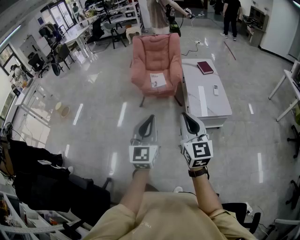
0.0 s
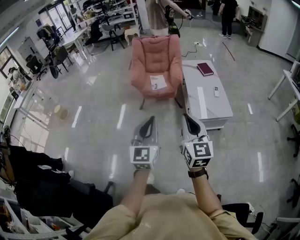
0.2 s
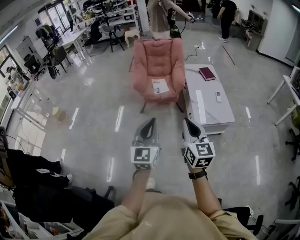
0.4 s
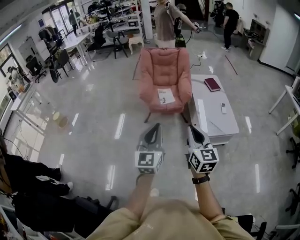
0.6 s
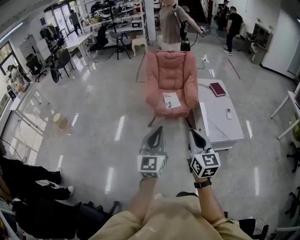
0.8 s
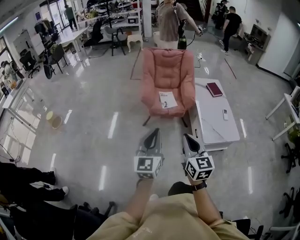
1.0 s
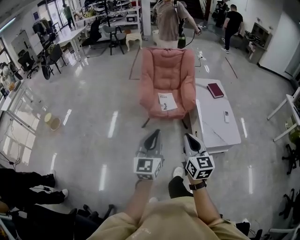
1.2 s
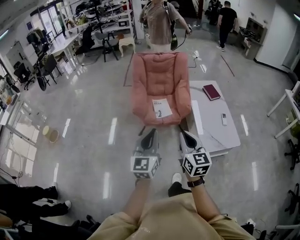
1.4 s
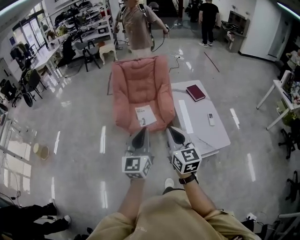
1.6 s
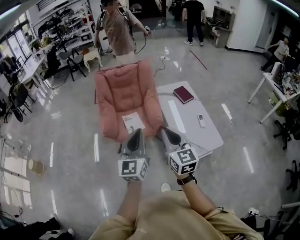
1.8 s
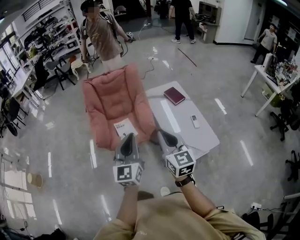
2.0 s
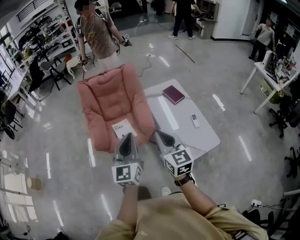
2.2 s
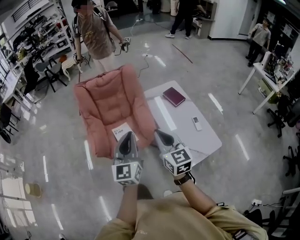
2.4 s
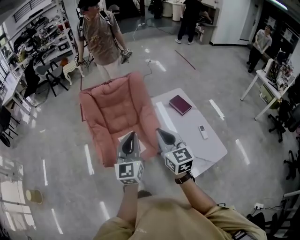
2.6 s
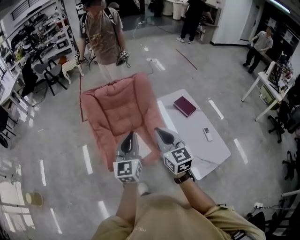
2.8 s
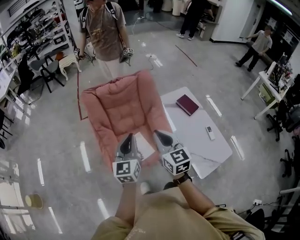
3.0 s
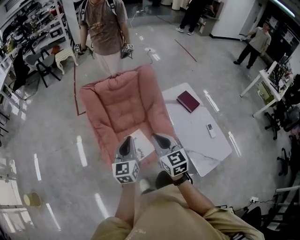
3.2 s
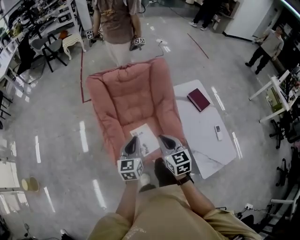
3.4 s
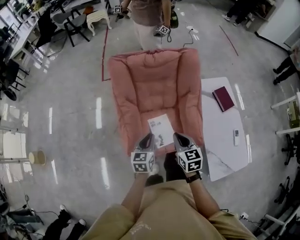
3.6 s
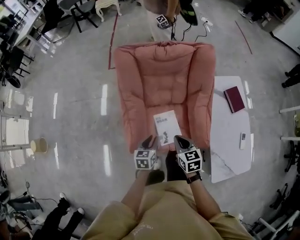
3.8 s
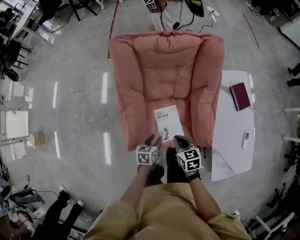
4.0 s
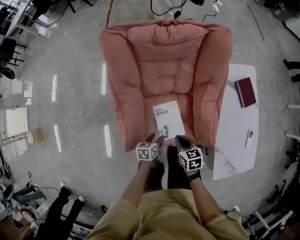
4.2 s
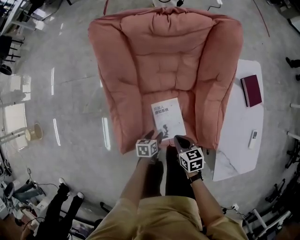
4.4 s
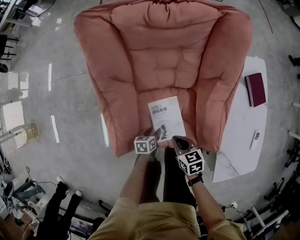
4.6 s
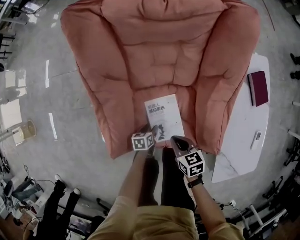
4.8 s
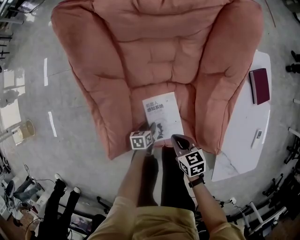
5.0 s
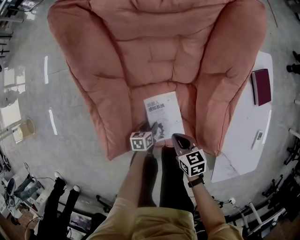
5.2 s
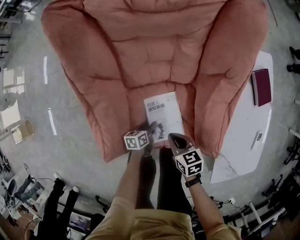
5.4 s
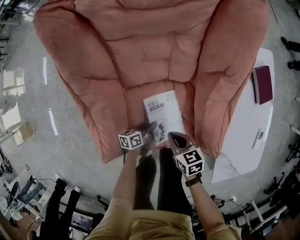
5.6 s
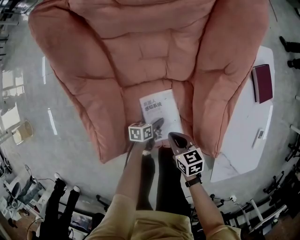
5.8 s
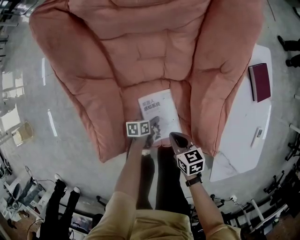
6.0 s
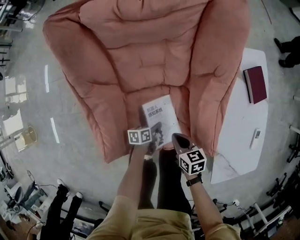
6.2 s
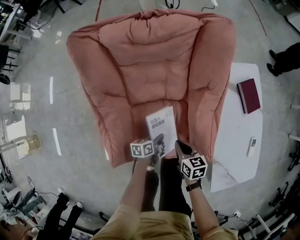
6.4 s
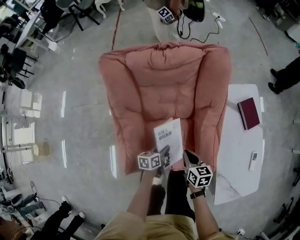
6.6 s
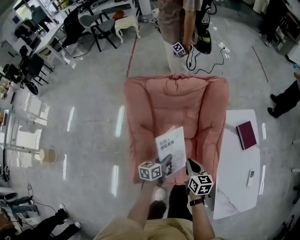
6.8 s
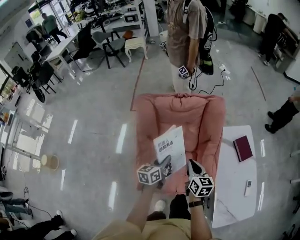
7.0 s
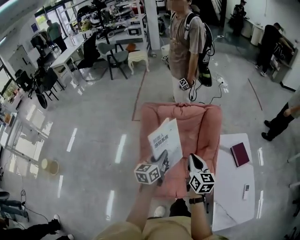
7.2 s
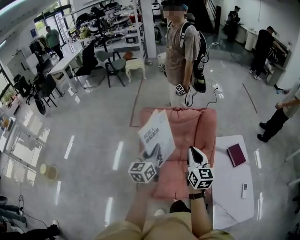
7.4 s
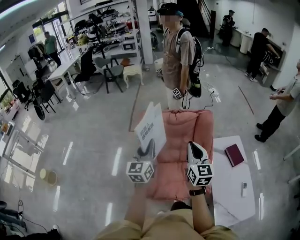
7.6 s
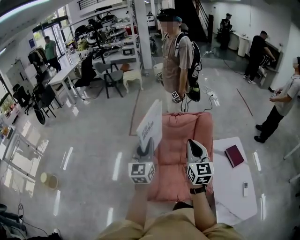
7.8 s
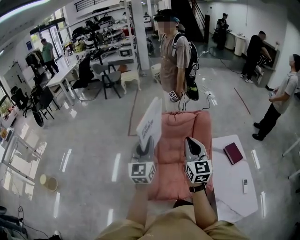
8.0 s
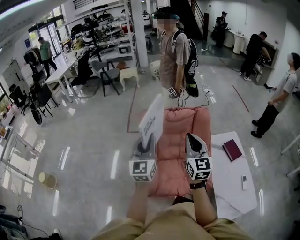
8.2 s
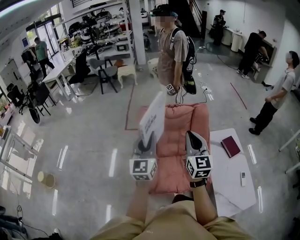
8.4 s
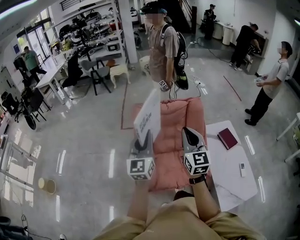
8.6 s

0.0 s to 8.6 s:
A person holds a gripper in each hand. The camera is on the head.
0.0 to 1.4 s: The grippers both shift forward and to the left by roughly 40 cm.
1.4 to 2.8 s: The two grippers travel together, forward, about 50 cm.
2.8 to 4.4 s: Both grippers move downward, about 50 cm. The left gripper tips its fingers downward by some 50 degrees, and opens. The right gripper points its fingers approximately 40 degrees further downward.
4.4 to 5.8 s: The grippers both shift downward by about 10 cm. The left gripper closes, then opens again.
5.8 to 7.2 s: The two grippers go some 50 cm upward. The left gripper tilts its fingers roughly 30 degrees upward, and closes, while the right gripper angles its fingers upward, by roughly 30 degrees.
7.2 to 8.6 s: The two grippers go approximately 20 cm upward and backward. The right gripper turns by approximately 30 degrees; the left gripper rotates approximately 40 degrees.

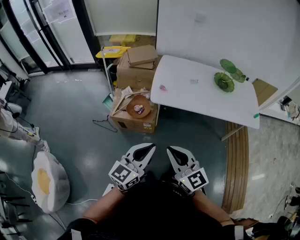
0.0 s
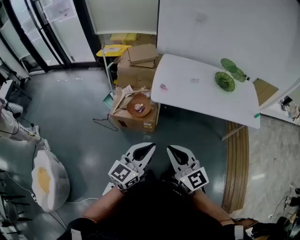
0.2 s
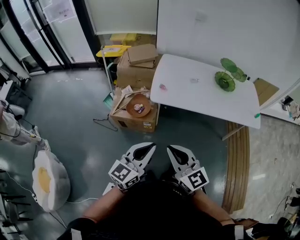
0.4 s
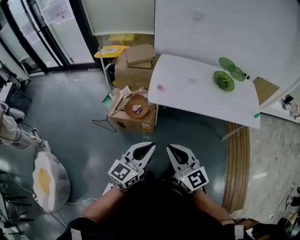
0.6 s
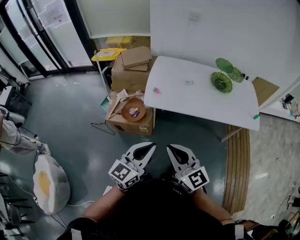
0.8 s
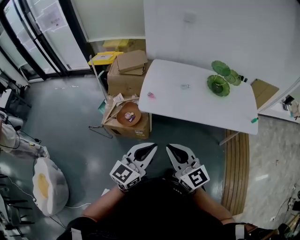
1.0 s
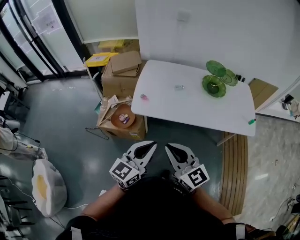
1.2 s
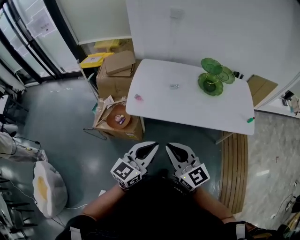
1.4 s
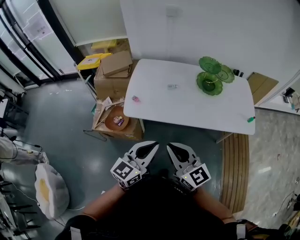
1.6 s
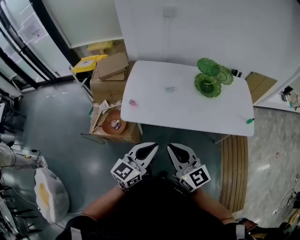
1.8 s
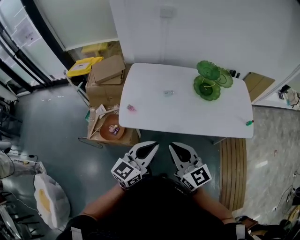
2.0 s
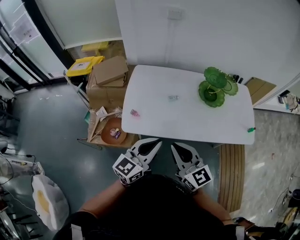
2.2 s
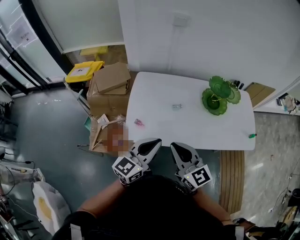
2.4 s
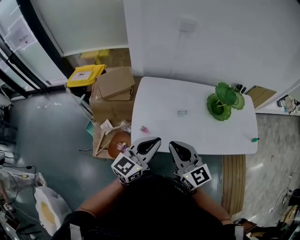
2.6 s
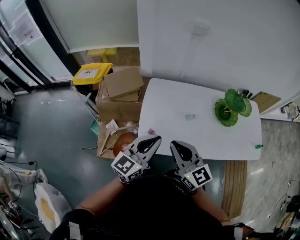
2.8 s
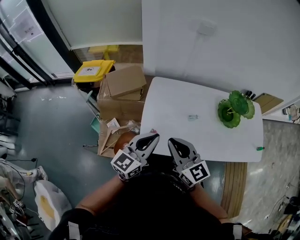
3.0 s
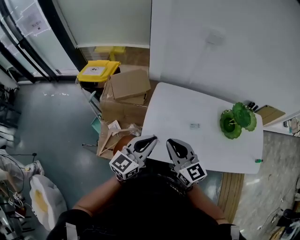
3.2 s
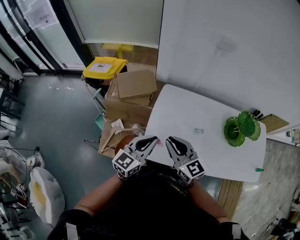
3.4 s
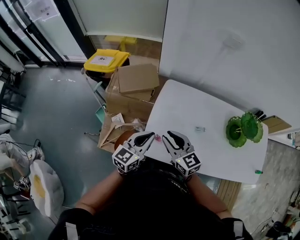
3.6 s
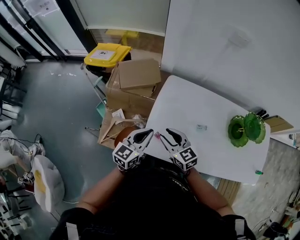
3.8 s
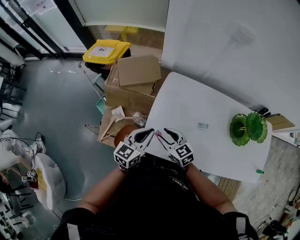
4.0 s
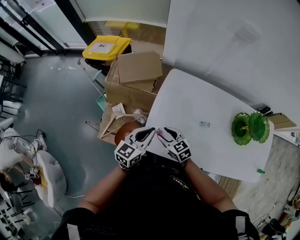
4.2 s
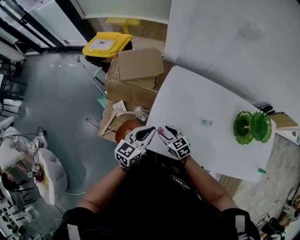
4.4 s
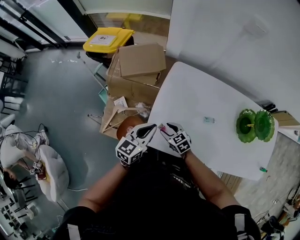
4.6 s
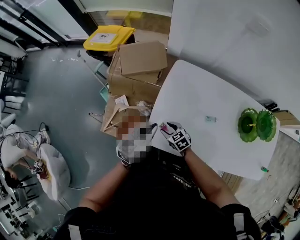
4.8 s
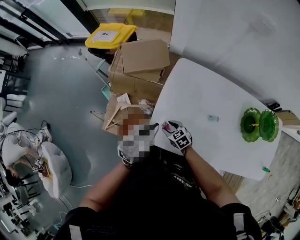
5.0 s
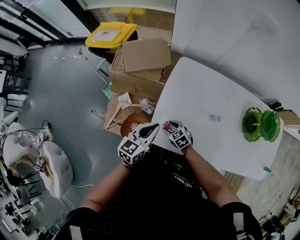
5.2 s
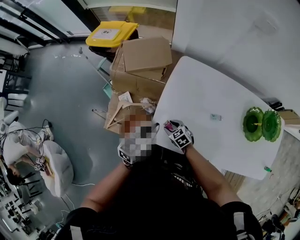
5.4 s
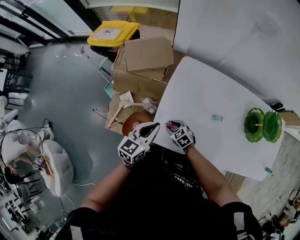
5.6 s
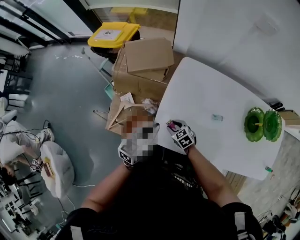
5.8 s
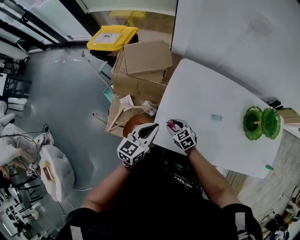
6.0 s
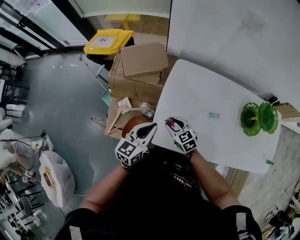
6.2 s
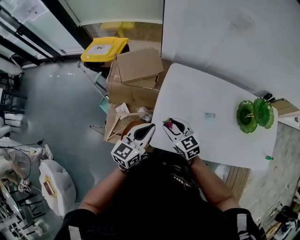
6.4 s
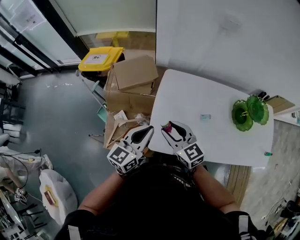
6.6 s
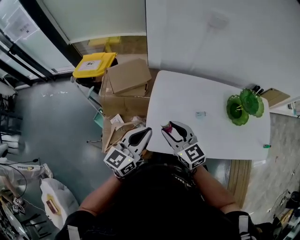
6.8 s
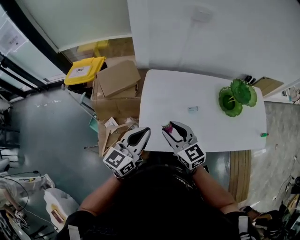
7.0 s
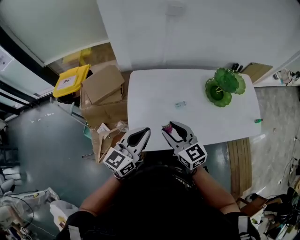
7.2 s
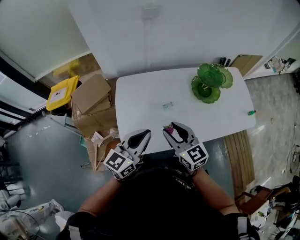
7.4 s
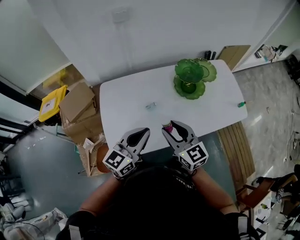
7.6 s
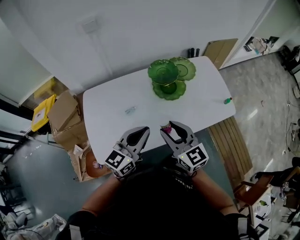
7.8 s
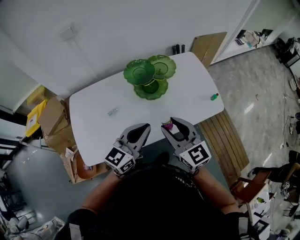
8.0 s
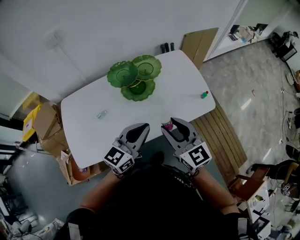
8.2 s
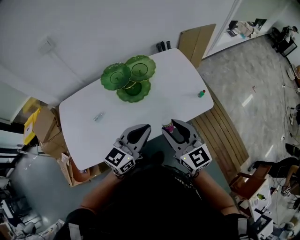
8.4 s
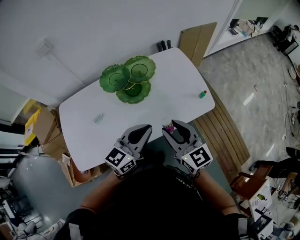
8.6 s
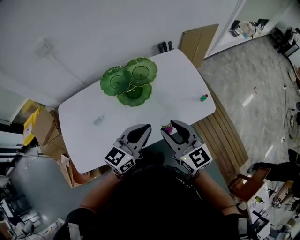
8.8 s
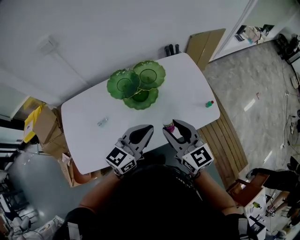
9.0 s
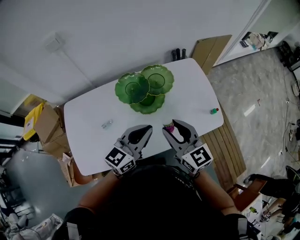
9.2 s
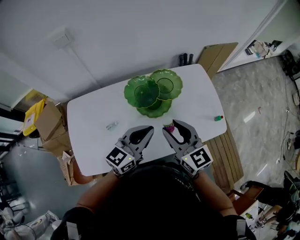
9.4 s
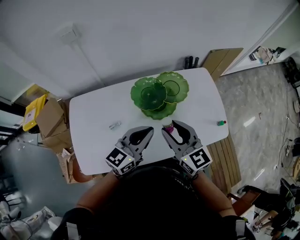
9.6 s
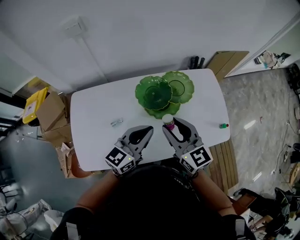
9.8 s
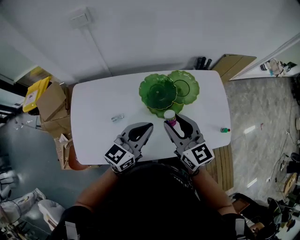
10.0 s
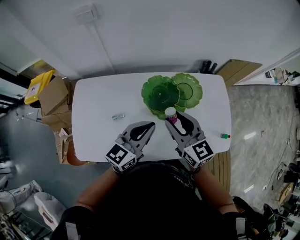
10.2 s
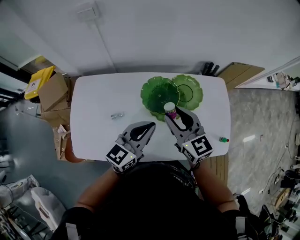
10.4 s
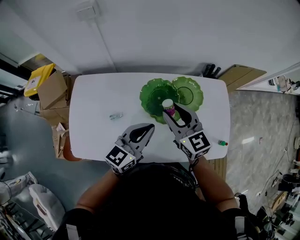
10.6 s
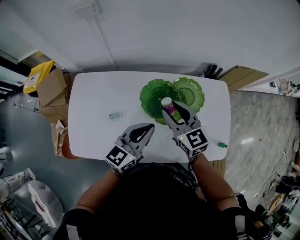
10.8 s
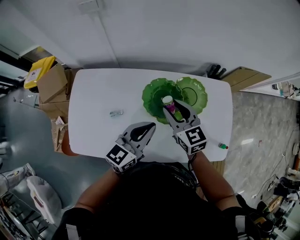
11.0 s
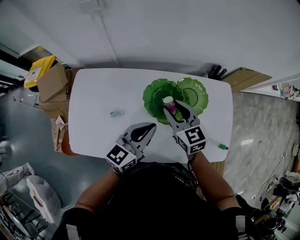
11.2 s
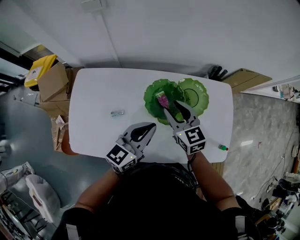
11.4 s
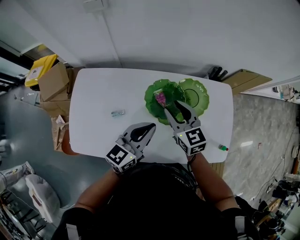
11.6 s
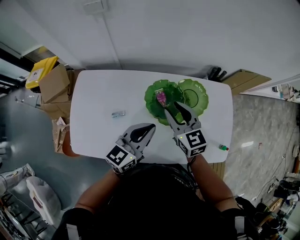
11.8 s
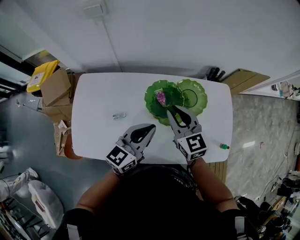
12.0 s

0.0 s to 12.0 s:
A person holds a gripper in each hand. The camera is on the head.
0.0 to 1.6 s: The grippers both shift to the right and forward by about 25 cm.
1.6 to 3.0 s: The two grippers go roughly 35 cm forward and to the left.
3.0 to 4.4 s: The right gripper goes about 30 cm downward, tips its fingers downward by approximately 30 degrees, and opens; the left gripper shifts approximately 20 cm downward and forward, and changes its angle by roughly 20 degrees.
4.4 to 6.0 s: The right gripper is displaced downward by approximately 5 cm.
6.0 to 7.6 s: The left gripper ends up about 30 cm from where it was, and changes its angle by roughly 40 degrees. Meanwhile the right gripper goes approximately 30 cm upward, and points its fingers roughly 40 degrees further upward.
7.6 to 9.0 s: The right gripper heads to the right, covering about 30 cm, while the left gripper moves to the right and forward, roughly 35 cm.
9.0 to 10.4 s: The left gripper shifts approximately 15 cm to the left and forward; the right gripper shifts about 20 cm forward and to the left.

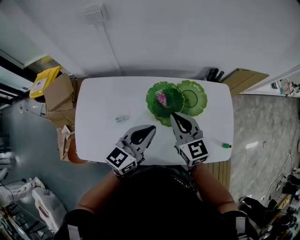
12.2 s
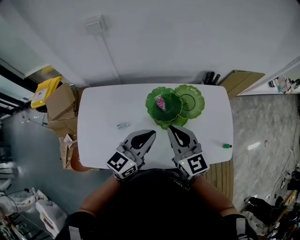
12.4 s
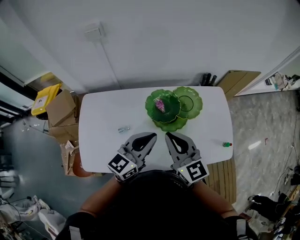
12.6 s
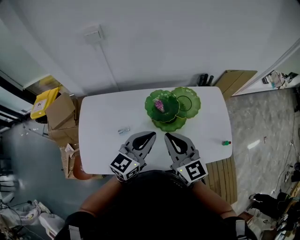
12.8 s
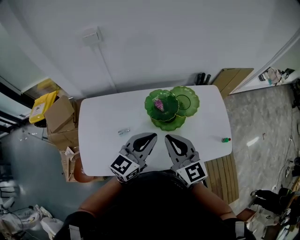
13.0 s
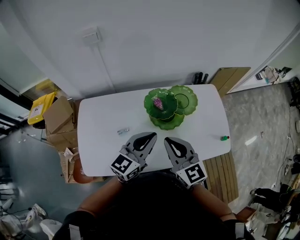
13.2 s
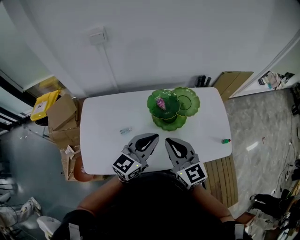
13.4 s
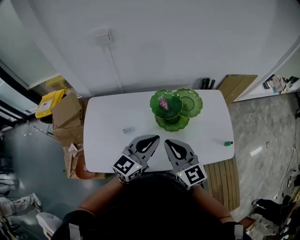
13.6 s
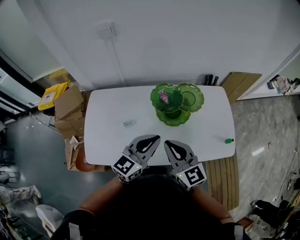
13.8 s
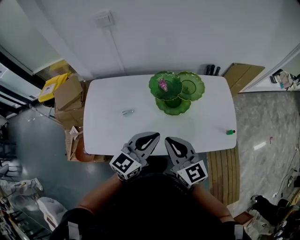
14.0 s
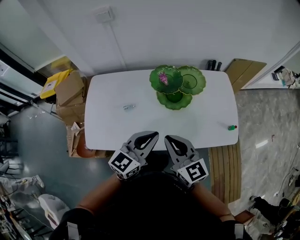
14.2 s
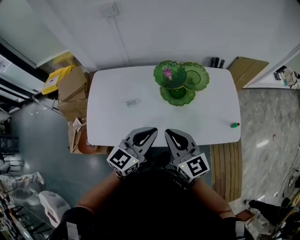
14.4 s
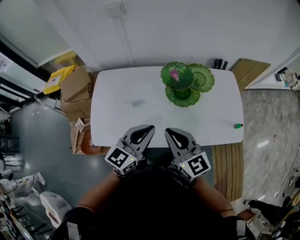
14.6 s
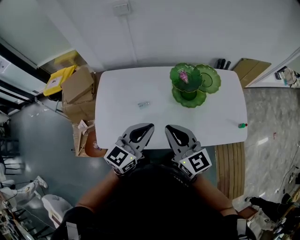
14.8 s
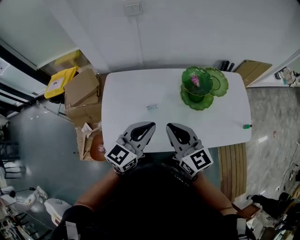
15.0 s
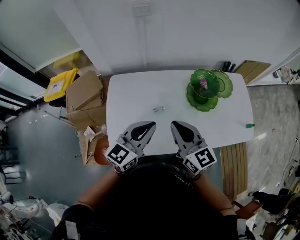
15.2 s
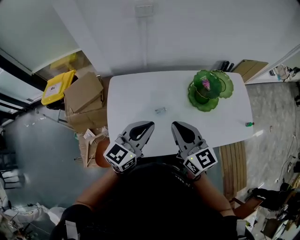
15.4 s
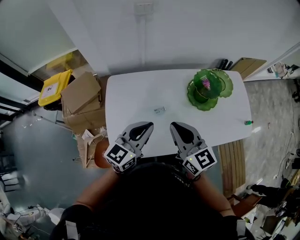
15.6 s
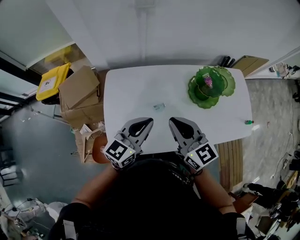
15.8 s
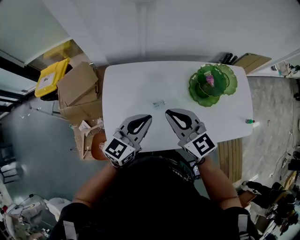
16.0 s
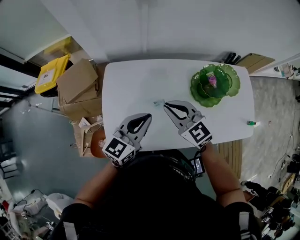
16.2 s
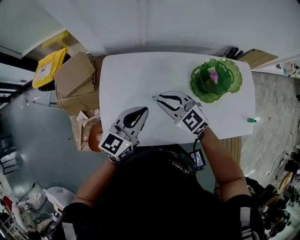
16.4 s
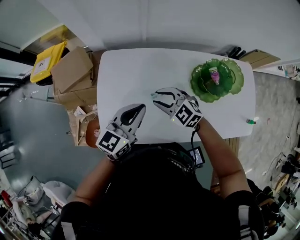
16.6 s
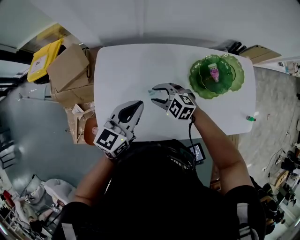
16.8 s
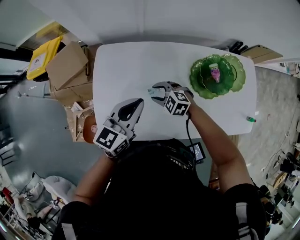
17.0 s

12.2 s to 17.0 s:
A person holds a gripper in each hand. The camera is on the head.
12.2 to 13.8 s: The left gripper travels backward by approximately 10 cm; the right gripper shifts approximately 15 cm backward.
13.8 to 15.4 s: The grippers both shift to the left by roughly 25 cm.
15.4 to 17.0 s: The right gripper is displaced downward by roughly 30 cm, tilts its fingers about 40 degrees downward, and opens; the left gripper moves downward, approximately 10 cm.
